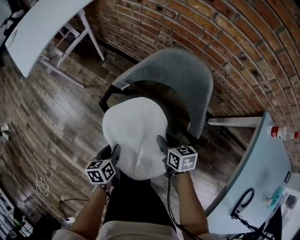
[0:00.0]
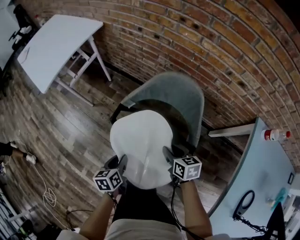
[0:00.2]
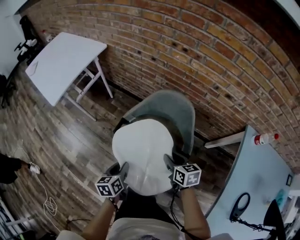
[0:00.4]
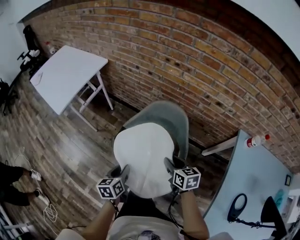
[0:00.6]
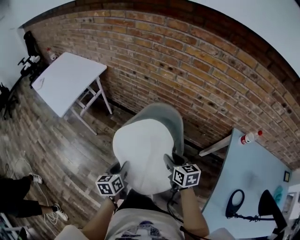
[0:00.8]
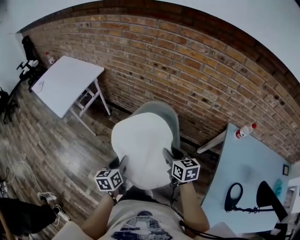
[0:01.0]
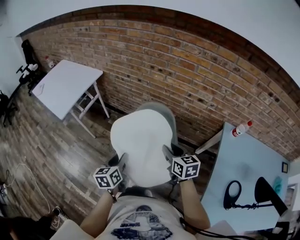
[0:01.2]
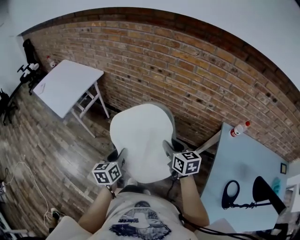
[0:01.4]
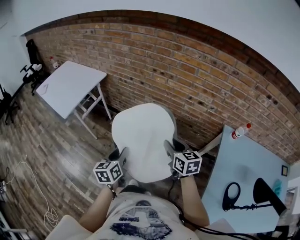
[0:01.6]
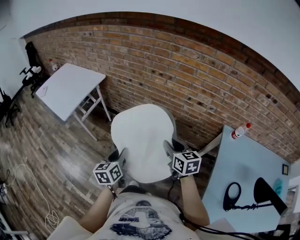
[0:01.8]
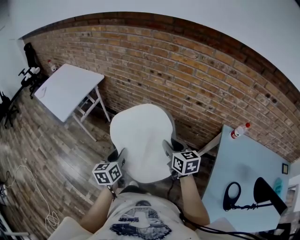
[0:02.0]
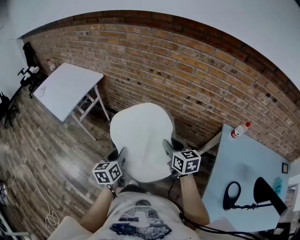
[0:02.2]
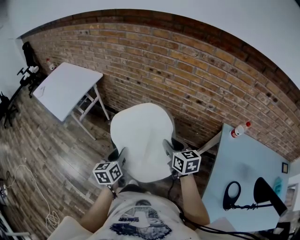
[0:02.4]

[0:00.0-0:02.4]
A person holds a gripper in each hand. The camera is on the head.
0:00.0 to 0:01.2: Both grippers move upward, about 35 cm. The right gripper turns by roughly 20 degrees. Meanwhile the left gripper rotates roughly 20 degrees.
0:01.2 to 0:02.4: The grippers move only a little.

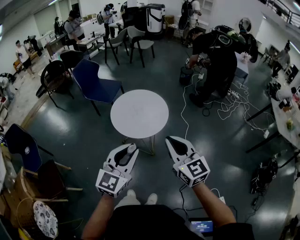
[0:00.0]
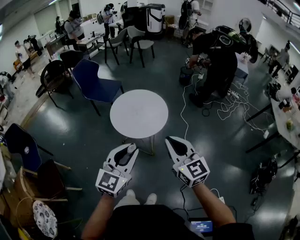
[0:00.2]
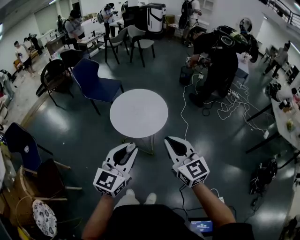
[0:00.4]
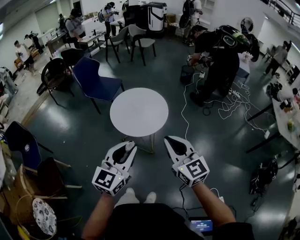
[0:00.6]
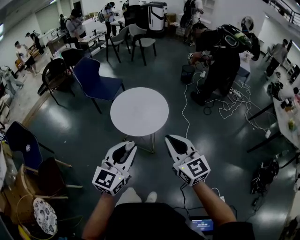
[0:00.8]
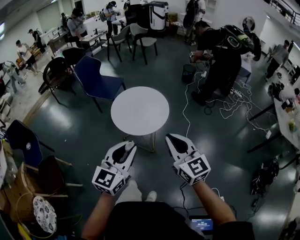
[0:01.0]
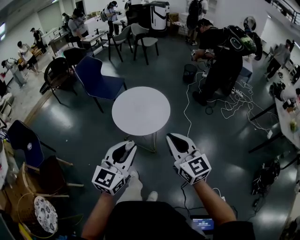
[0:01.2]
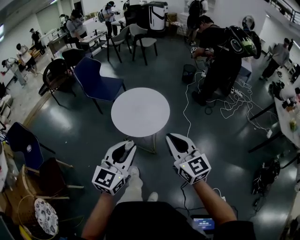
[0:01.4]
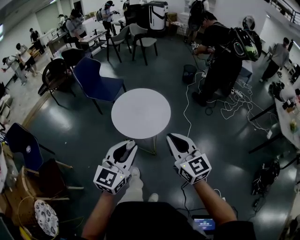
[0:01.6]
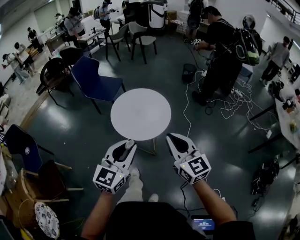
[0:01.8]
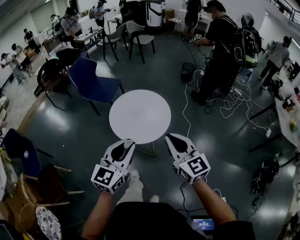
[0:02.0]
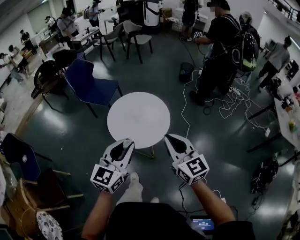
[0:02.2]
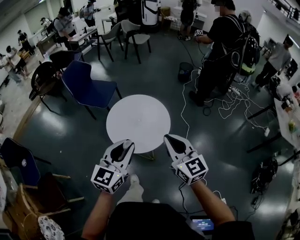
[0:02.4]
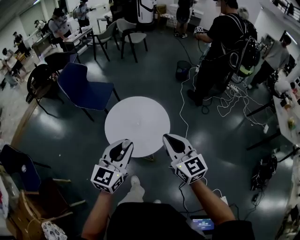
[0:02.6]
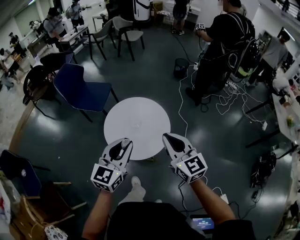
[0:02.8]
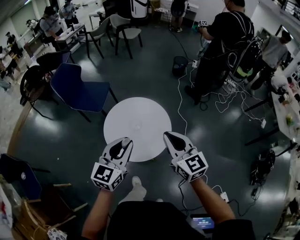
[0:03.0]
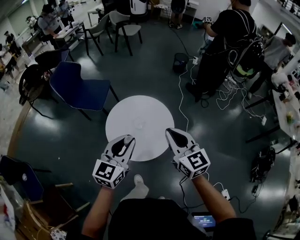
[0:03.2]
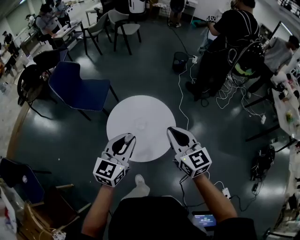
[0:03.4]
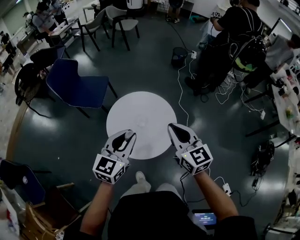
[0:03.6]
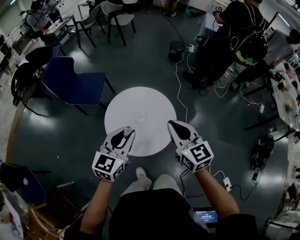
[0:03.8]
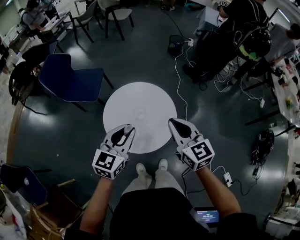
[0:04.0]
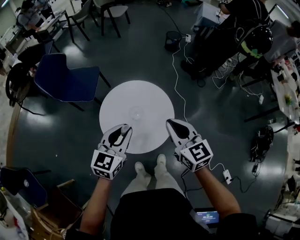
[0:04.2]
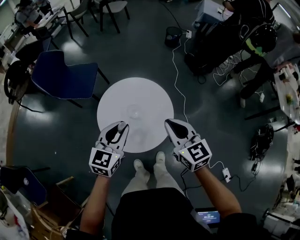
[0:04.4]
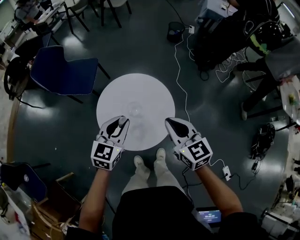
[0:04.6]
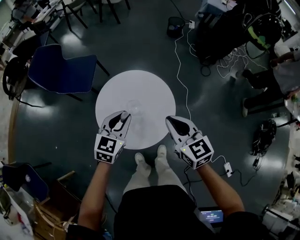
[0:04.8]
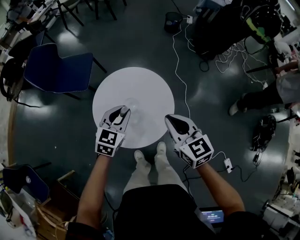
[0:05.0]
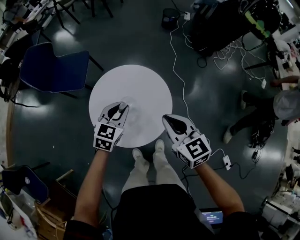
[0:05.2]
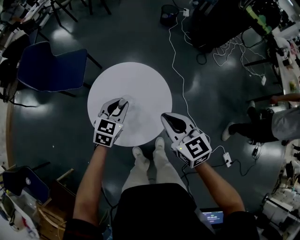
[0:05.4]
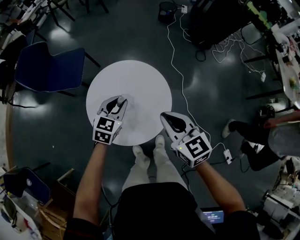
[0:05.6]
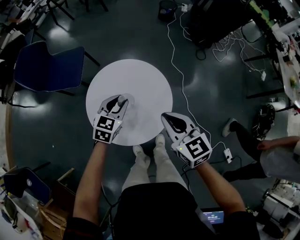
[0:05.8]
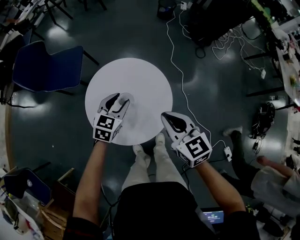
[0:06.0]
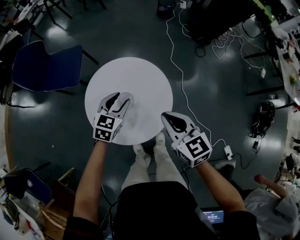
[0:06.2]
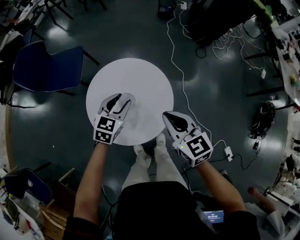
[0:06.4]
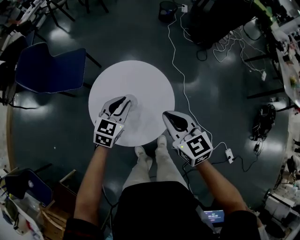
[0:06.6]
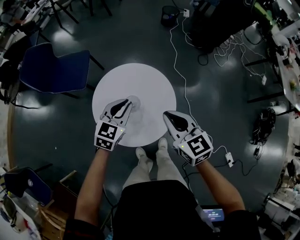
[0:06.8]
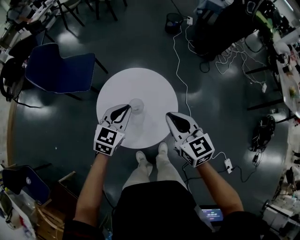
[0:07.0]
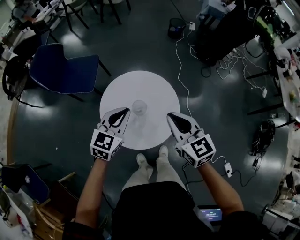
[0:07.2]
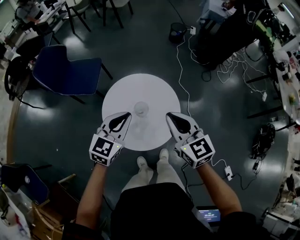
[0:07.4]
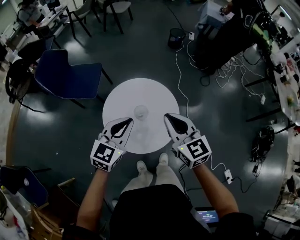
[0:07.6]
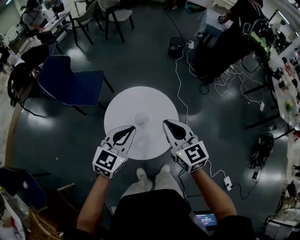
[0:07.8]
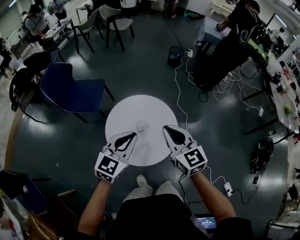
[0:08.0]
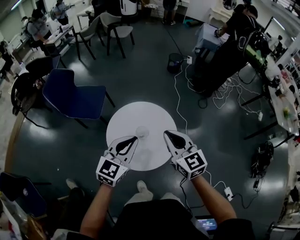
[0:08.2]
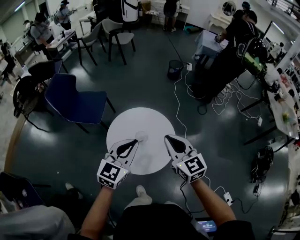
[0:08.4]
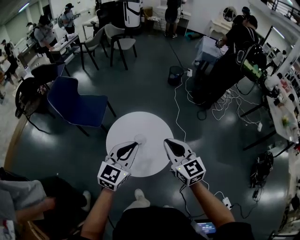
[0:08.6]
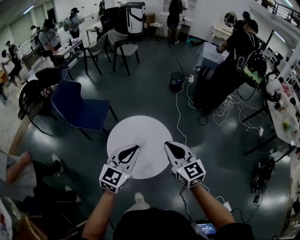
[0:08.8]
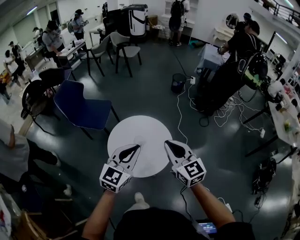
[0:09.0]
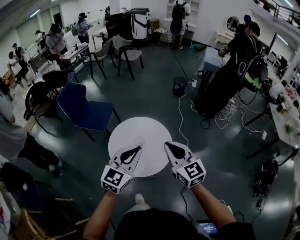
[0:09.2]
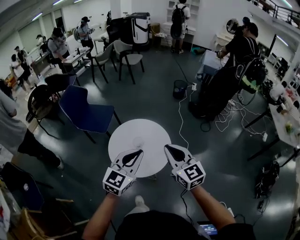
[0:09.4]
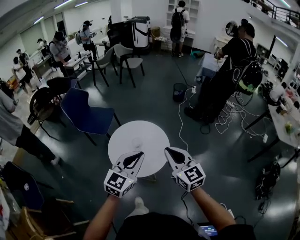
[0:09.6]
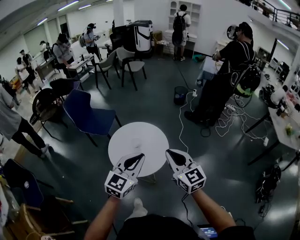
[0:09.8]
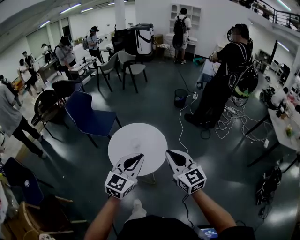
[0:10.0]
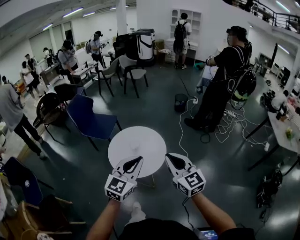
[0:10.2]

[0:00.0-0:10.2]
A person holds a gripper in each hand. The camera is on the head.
0:00.0 to 0:01.4: The grippers move only a little.
0:01.4 to 0:03.0: Both grippers travel together forward, about 30 cm.
0:03.0 to 0:04.4: Both grippers travel together forward and downward, about 15 cm.
0:04.4 to 0:05.8: The right gripper moves downward, approximately 10 cm. The left gripper shifts roughly 20 cm downward and forward.
0:05.8 to 0:07.2: The right gripper goes some 5 cm upward. The left gripper is displaced upward and backward by about 15 cm, and closes its fingers.
0:07.2 to 0:08.8: The grippers both shift upward and backward by approximately 15 cm.
0:08.8 to 0:10.2: Both grippers move backward and to the right, roughly 25 cm.

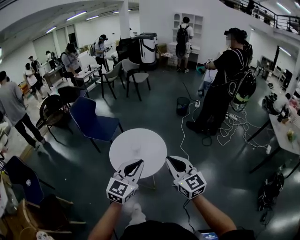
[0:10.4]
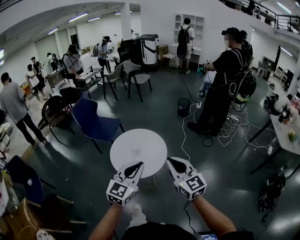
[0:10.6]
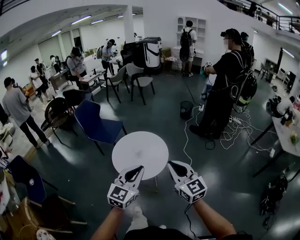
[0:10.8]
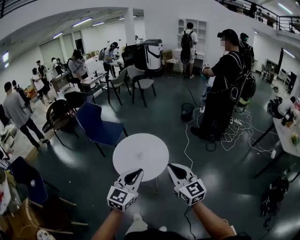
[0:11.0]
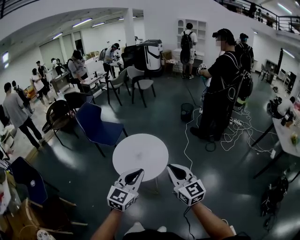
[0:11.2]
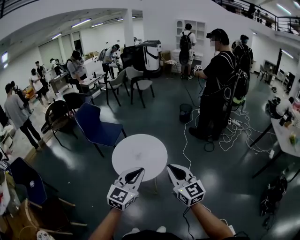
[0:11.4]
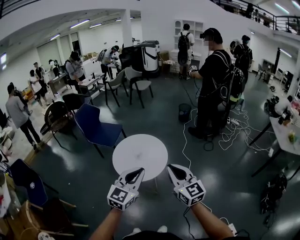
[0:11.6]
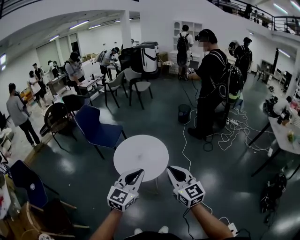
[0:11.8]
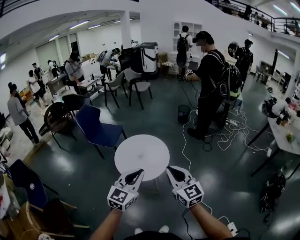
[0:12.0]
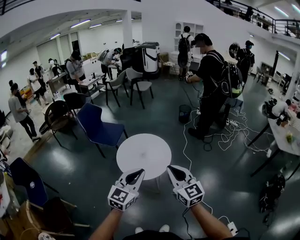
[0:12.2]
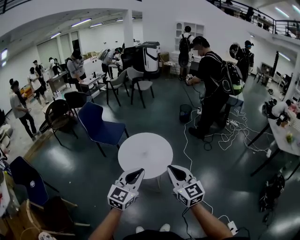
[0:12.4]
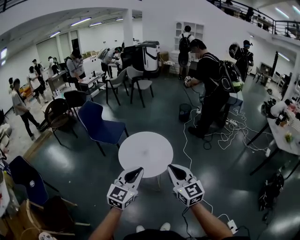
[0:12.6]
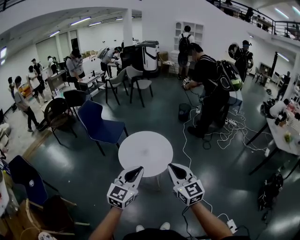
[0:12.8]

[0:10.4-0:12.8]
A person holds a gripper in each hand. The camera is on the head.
0:10.4 to 0:11.6: The grippers both shift backward by roughly 5 cm.
0:11.6 to 0:12.8: The right gripper travels to the left and backward by approximately 10 cm; the left gripper is displaced to the left by roughly 10 cm.

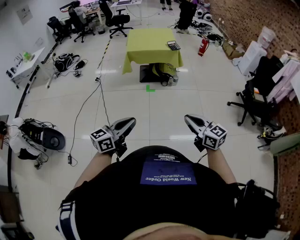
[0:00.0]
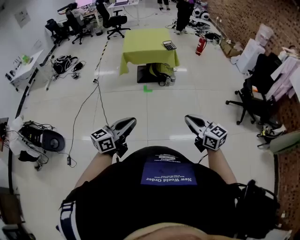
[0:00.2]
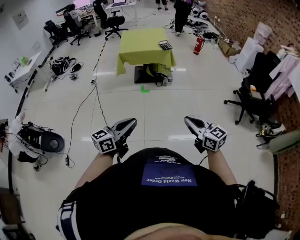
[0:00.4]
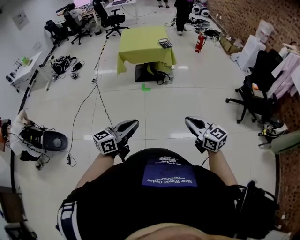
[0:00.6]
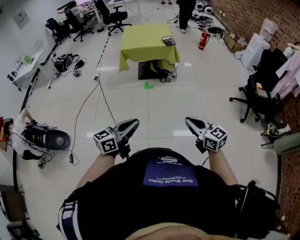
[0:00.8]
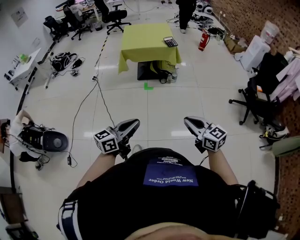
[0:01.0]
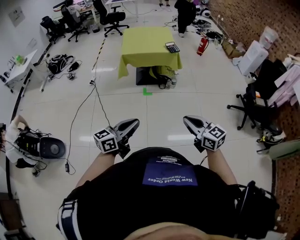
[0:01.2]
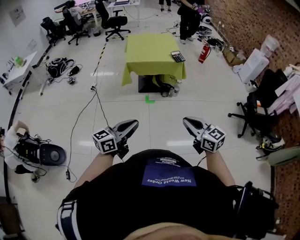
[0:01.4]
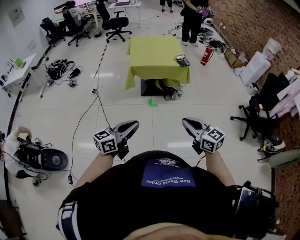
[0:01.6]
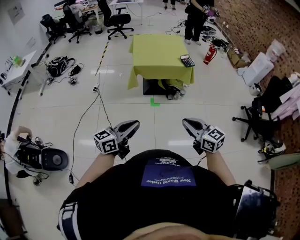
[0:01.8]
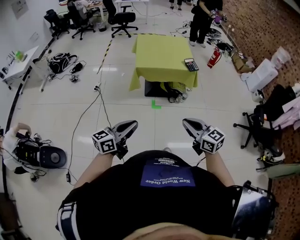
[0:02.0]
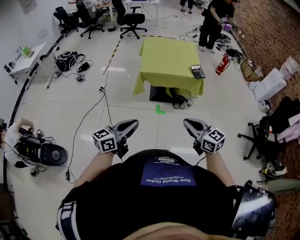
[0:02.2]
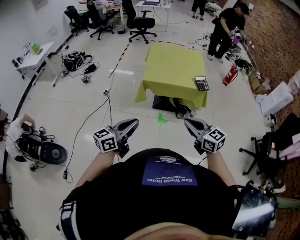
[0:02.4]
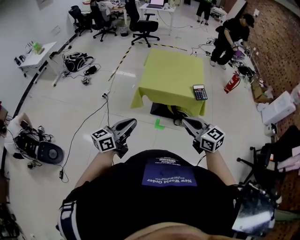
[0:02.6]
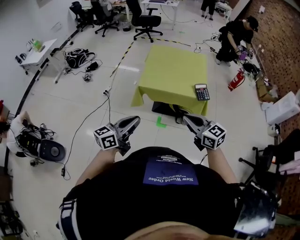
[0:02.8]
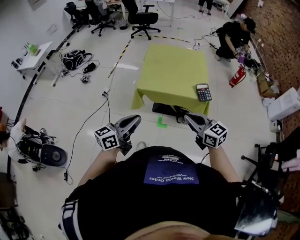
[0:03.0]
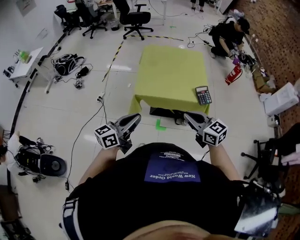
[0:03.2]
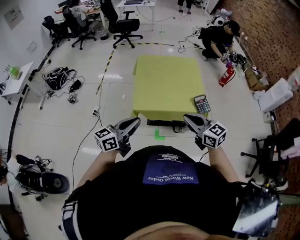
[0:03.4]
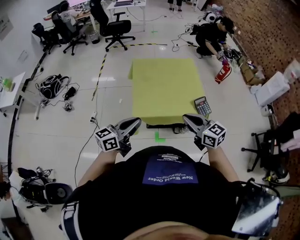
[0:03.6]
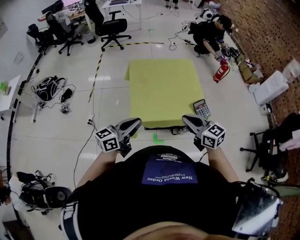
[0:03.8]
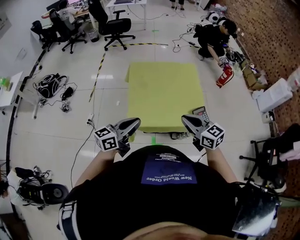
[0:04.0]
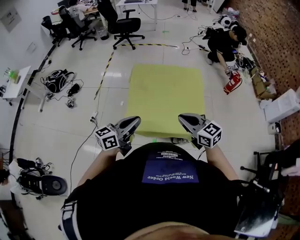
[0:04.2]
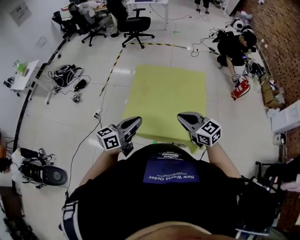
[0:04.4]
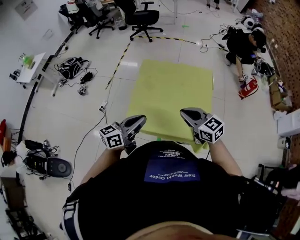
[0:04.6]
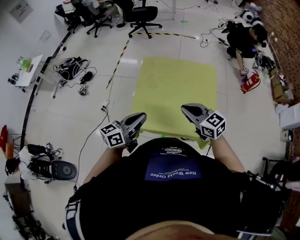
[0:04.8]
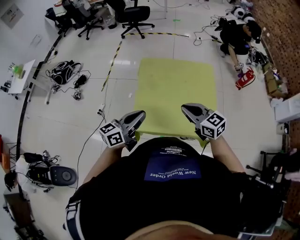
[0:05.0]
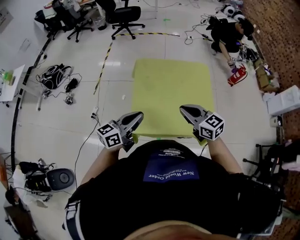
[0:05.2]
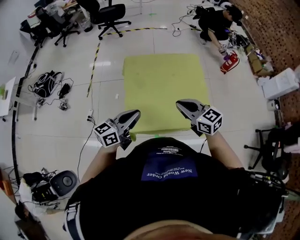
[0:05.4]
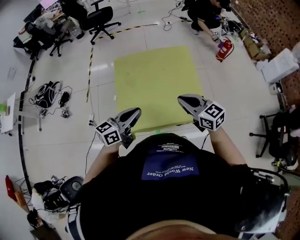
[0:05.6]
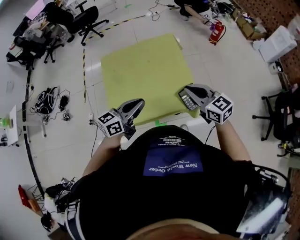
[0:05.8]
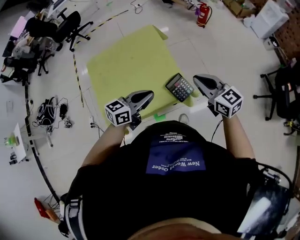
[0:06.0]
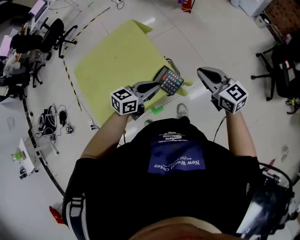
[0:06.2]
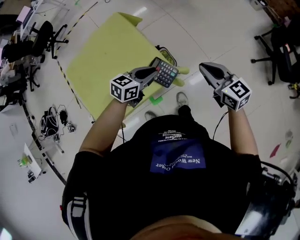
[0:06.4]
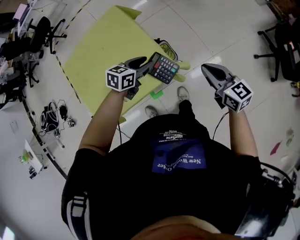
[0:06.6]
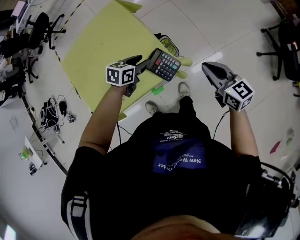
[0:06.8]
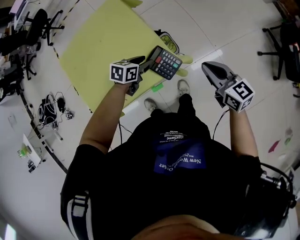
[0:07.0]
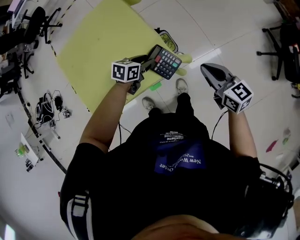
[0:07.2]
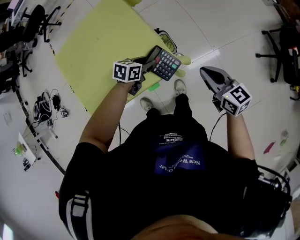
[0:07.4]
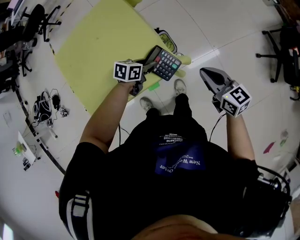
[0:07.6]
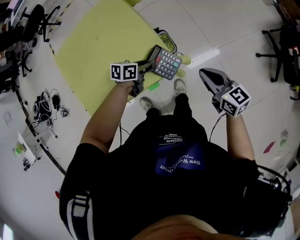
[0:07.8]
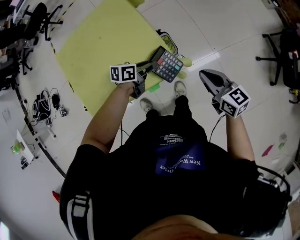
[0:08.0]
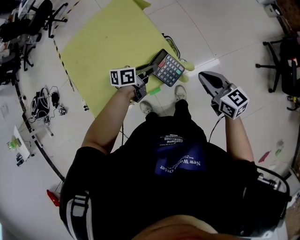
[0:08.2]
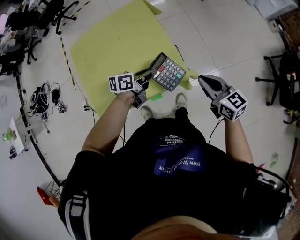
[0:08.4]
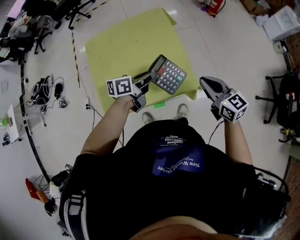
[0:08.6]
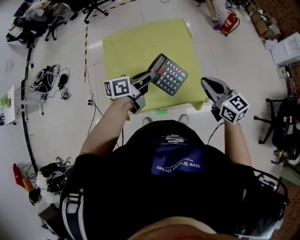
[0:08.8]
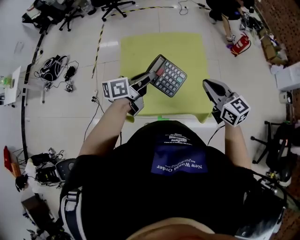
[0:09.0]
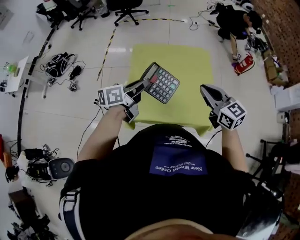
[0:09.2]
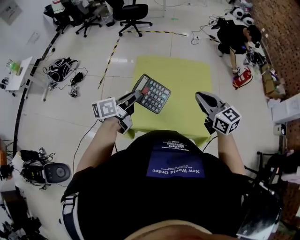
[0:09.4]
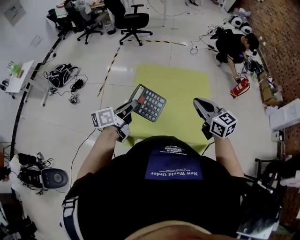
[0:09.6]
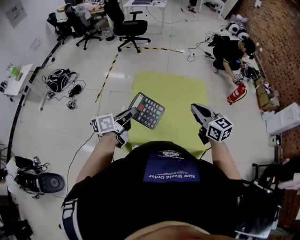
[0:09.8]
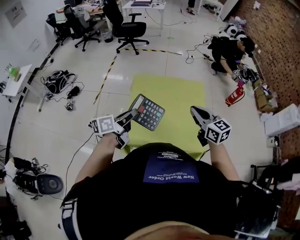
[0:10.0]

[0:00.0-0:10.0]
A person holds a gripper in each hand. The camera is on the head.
0:00.0 to 0:01.4: The left gripper travels forward by about 20 cm. Meanwhile the right gripper is displaced forward and to the left by about 20 cm.
0:01.4 to 0:02.8: Both grippers travel together forward, about 40 cm.
0:02.8 to 0:04.2: Both grippers move forward, approximately 40 cm.
0:04.2 to 0:05.8: The right gripper changes place by approximately 15 cm, while the left gripper ends up approximately 15 cm from where it was, and changes its angle by roughly 20 degrees.
0:05.8 to 0:07.2: The left gripper goes about 25 cm downward, tilts its fingers about 40 degrees downward, and opens its fingers. Meanwhile the right gripper ends up about 25 cm from where it was, and rotates roughly 30 degrees.
0:07.2 to 0:08.6: The left gripper moves upward and to the left, approximately 15 cm, changes its angle by roughly 40 degrees, and closes; the right gripper moves to the left and upward, roughly 10 cm.
0:08.6 to 0:10.0: The left gripper moves approximately 35 cm, and turns by roughly 30 degrees. The right gripper shifts by about 30 cm, and turns by about 20 degrees.
